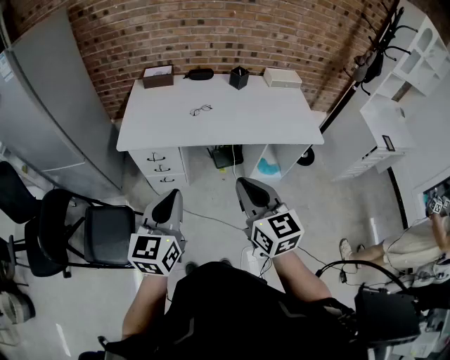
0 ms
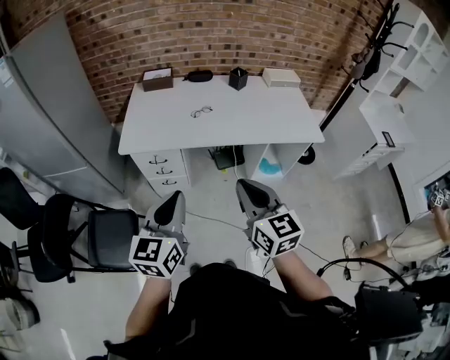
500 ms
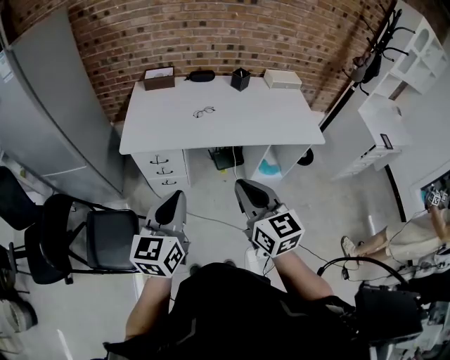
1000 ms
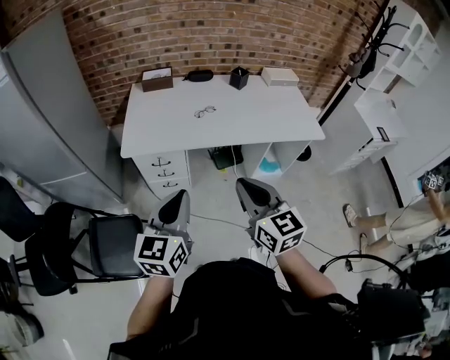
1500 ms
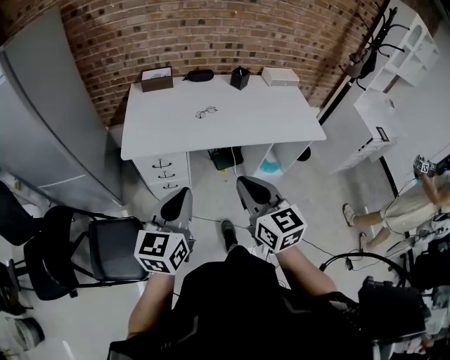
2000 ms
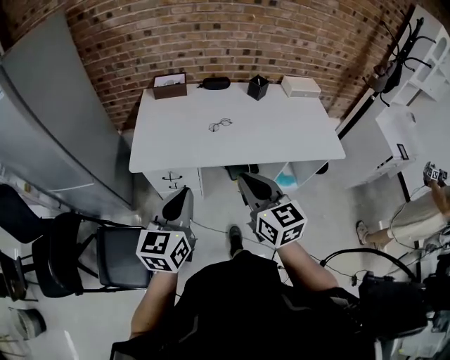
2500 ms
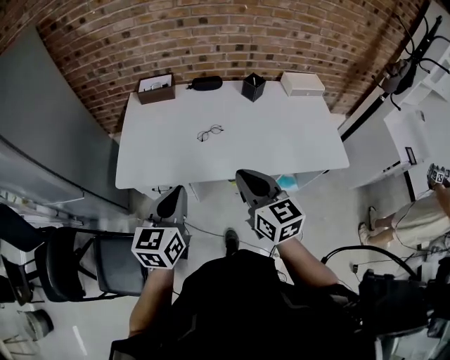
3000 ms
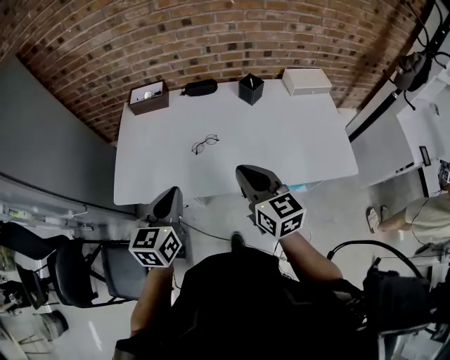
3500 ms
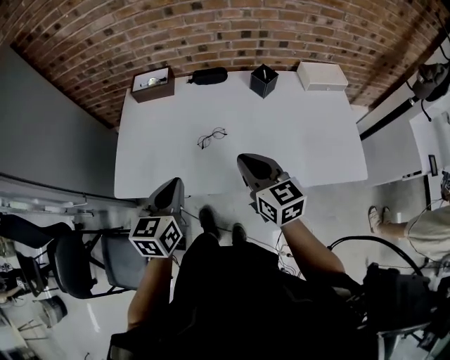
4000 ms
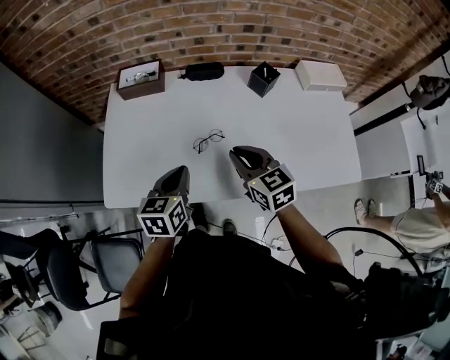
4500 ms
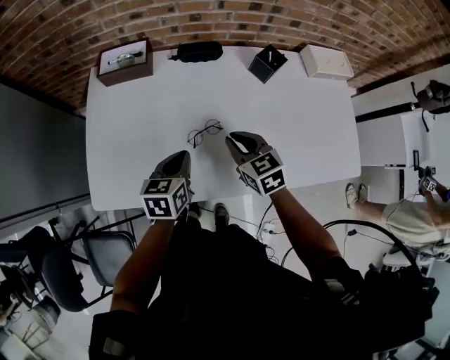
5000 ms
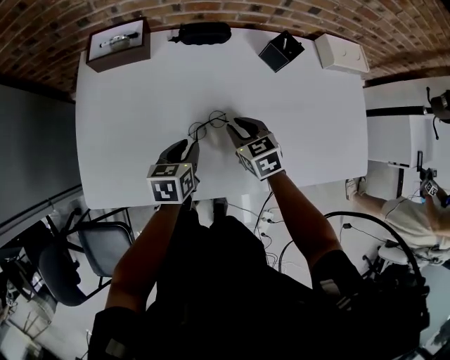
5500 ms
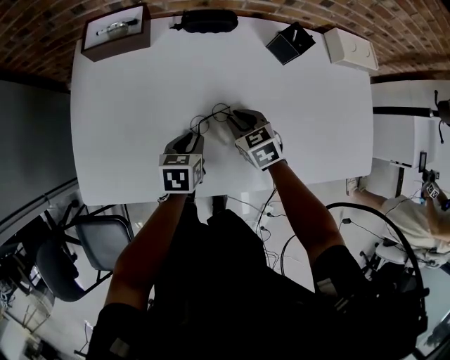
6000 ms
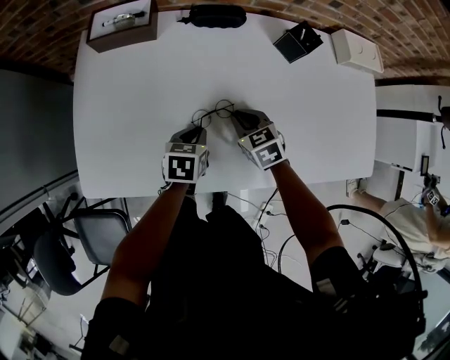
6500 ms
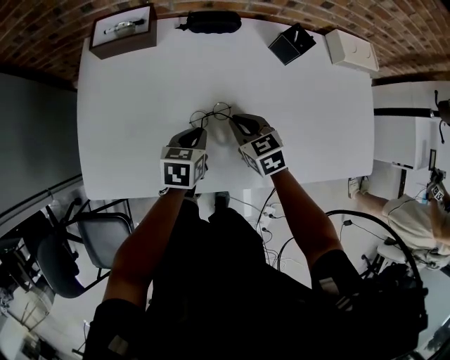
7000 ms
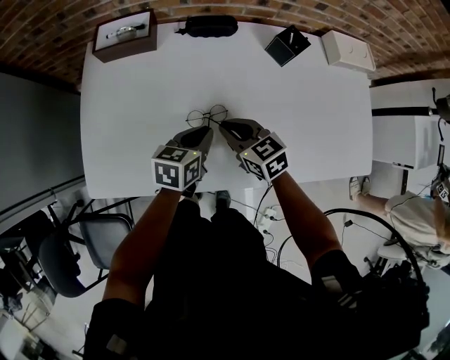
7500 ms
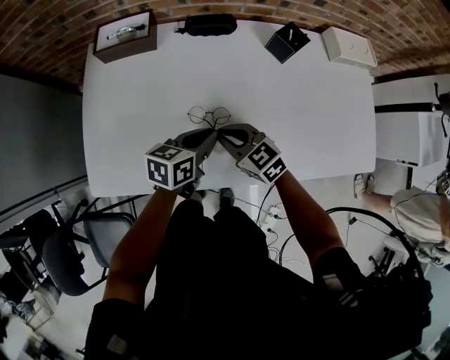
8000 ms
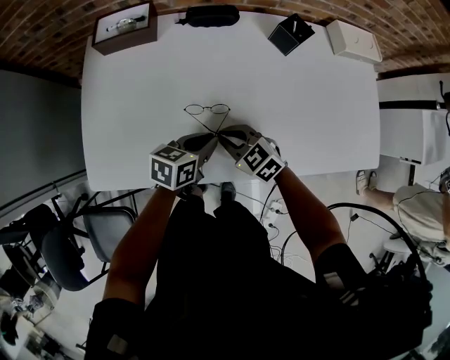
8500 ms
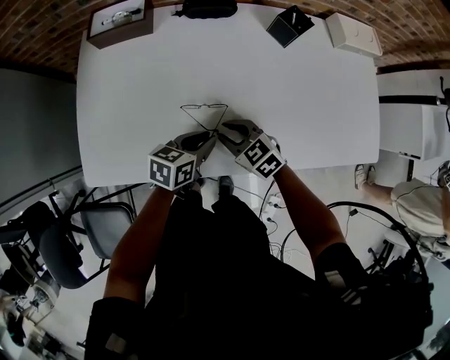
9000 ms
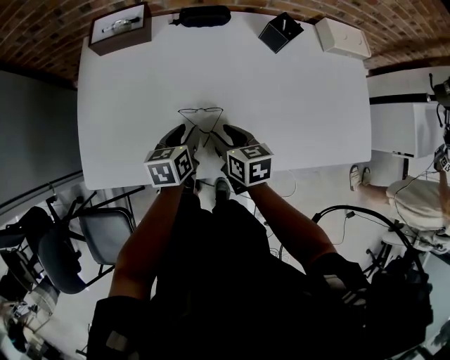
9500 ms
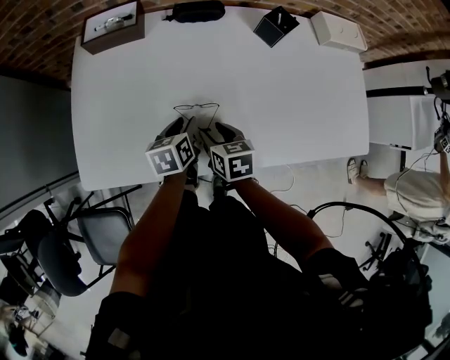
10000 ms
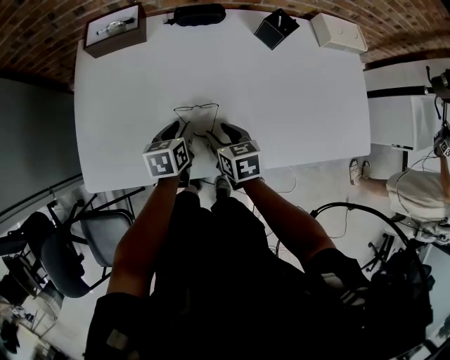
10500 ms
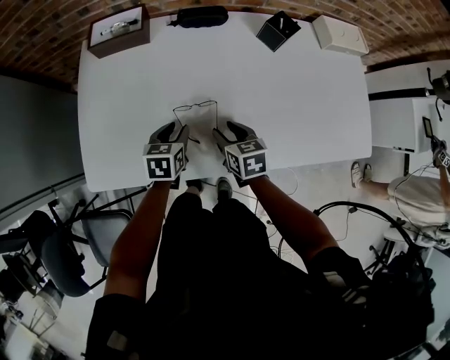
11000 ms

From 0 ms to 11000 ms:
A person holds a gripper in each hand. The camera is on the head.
From 0 ms to 2000 ms: The grippers both shift to the left by about 10 cm.
From 2000 ms to 3500 ms: The right gripper shifts about 35 cm forward and to the right. The left gripper travels forward by about 30 cm.
From 3500 ms to 5500 ms: The grippers both shift downward and forward by approximately 35 cm. The left gripper swivels about 30 degrees, and opens its fingers. The right gripper tilts its fingers some 30 degrees downward.
From 5500 ms to 7500 ms: The left gripper goes downward and returns, about 5 cm each way. Meanwhile the right gripper shifts by roughly 5 cm.
From 7500 ms to 9000 ms: The right gripper heads backward and downward, covering roughly 10 cm; the left gripper moves backward, some 5 cm.
From 9000 ms to 11000 ms: The right gripper turns by approximately 40 degrees. Meanwhile the left gripper travels to the left by some 10 cm, rotates about 30 degrees, and opens.

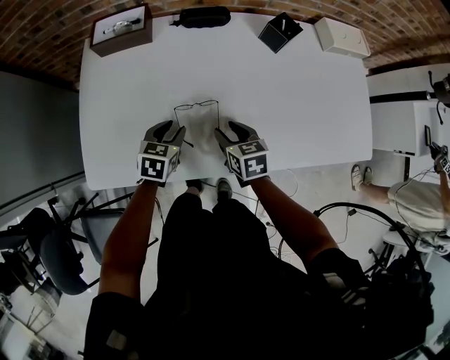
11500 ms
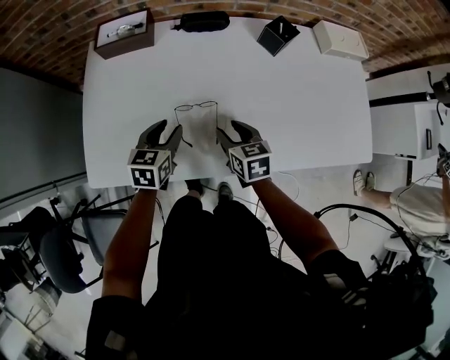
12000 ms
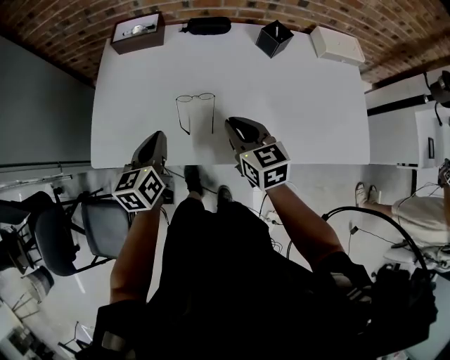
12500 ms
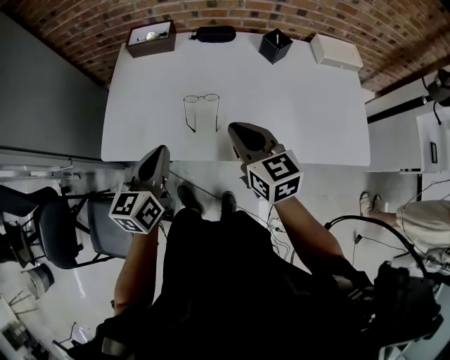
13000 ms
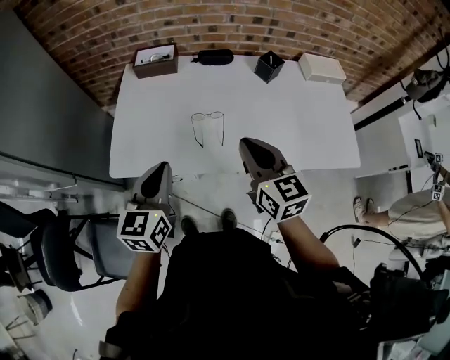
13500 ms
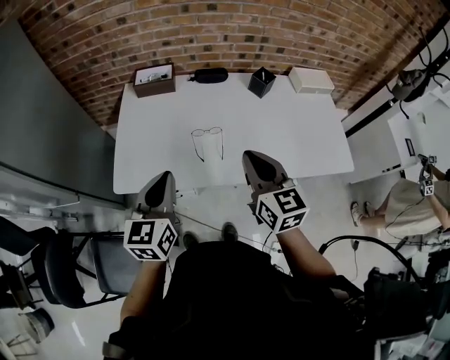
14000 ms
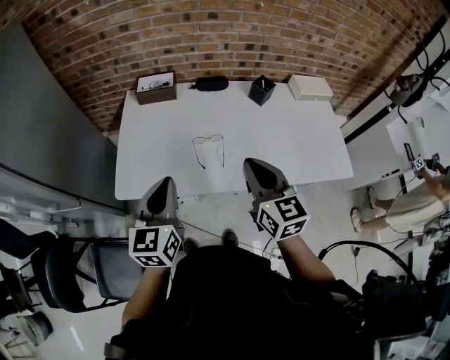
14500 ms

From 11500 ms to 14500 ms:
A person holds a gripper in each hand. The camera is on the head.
From 11500 ms to 13000 ms: The grippers both shift upward and backward by about 25 cm. The left gripper swivels approximately 40 degrees, and closes its fingers. The right gripper turns by some 30 degrees, and closes its fingers.
From 13000 ms to 14500 ms: The left gripper is displaced upward and to the left by roughly 10 cm, while the right gripper shifts approximately 10 cm upward and backward.

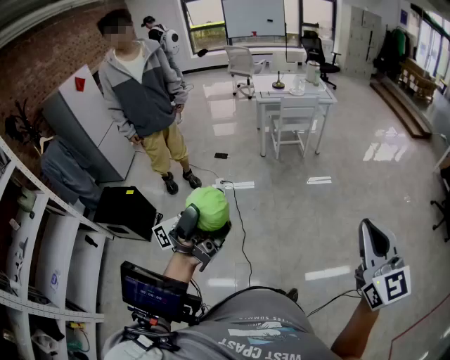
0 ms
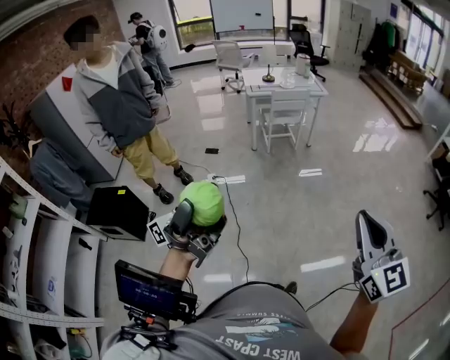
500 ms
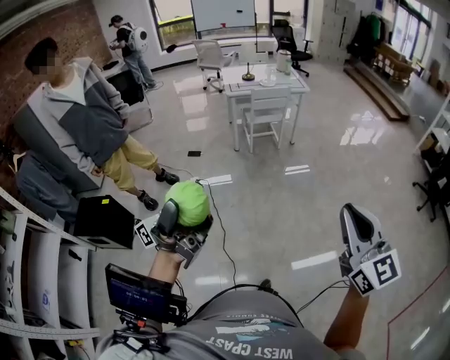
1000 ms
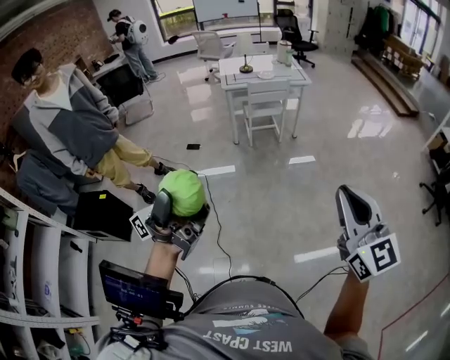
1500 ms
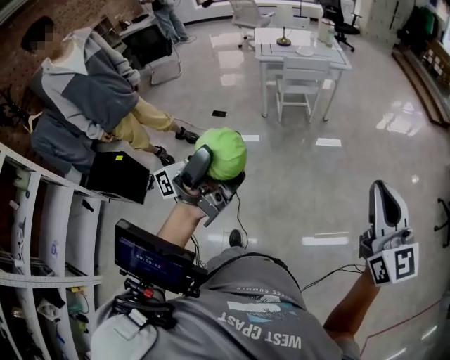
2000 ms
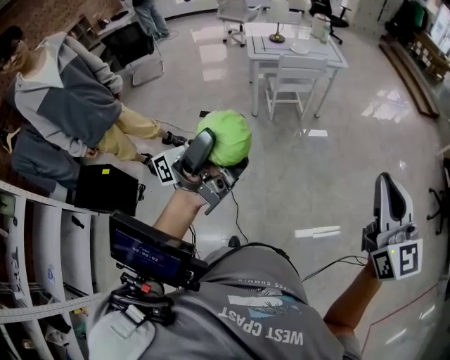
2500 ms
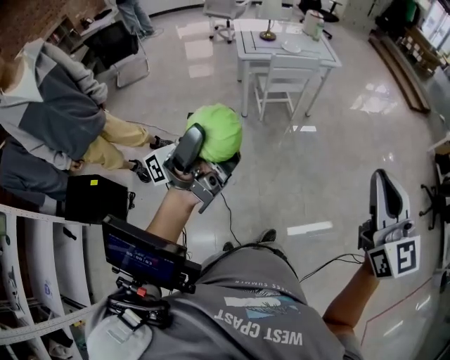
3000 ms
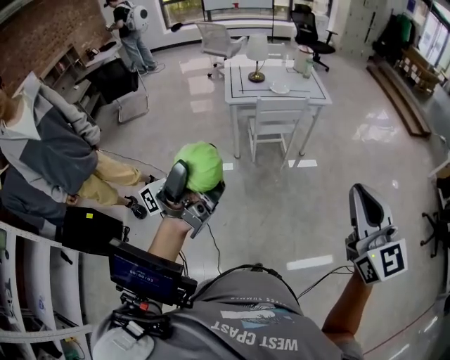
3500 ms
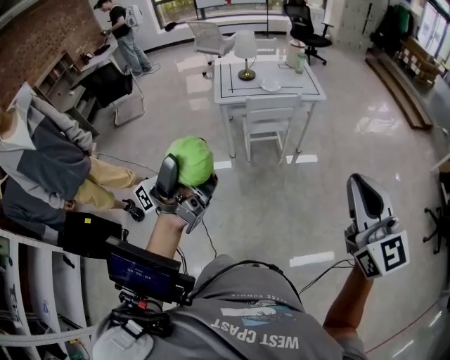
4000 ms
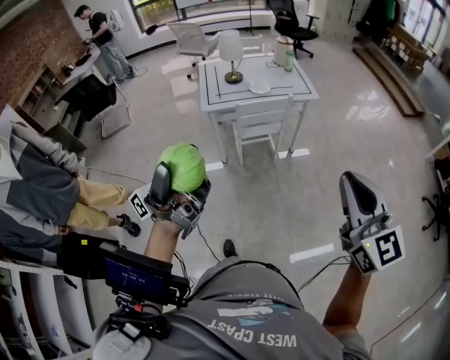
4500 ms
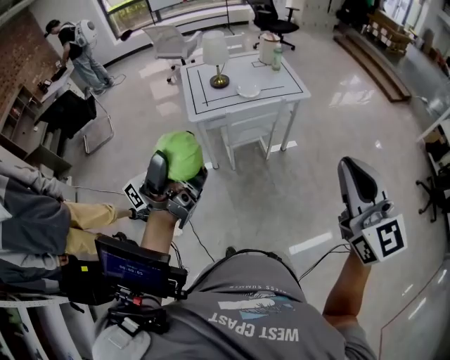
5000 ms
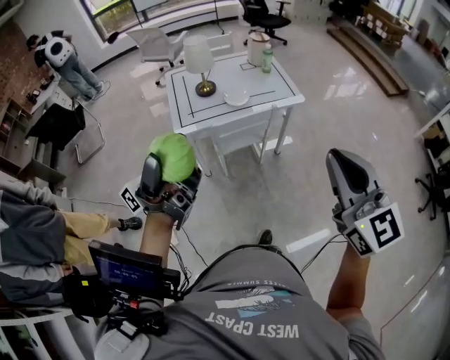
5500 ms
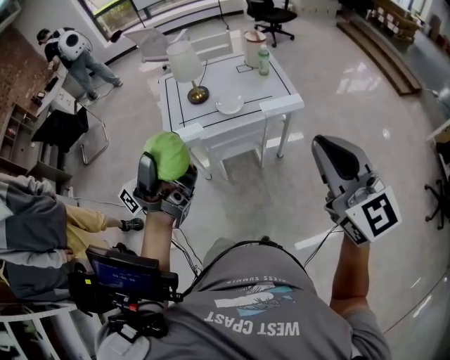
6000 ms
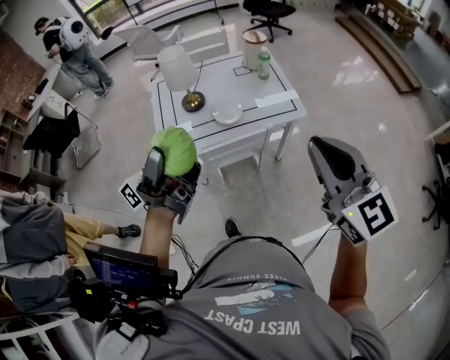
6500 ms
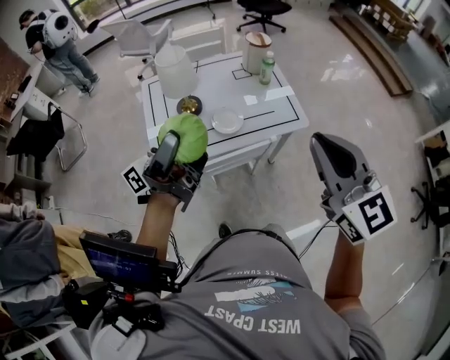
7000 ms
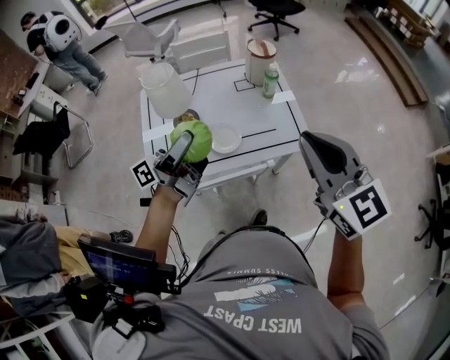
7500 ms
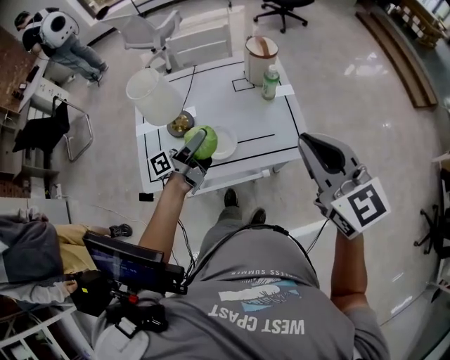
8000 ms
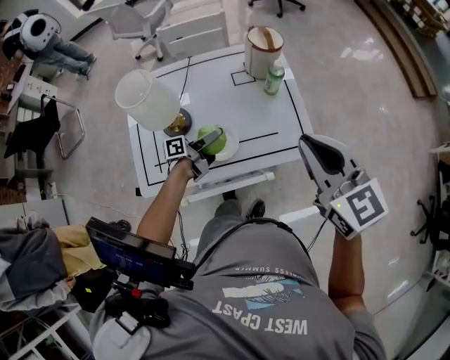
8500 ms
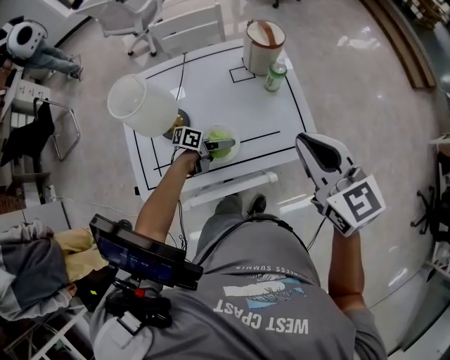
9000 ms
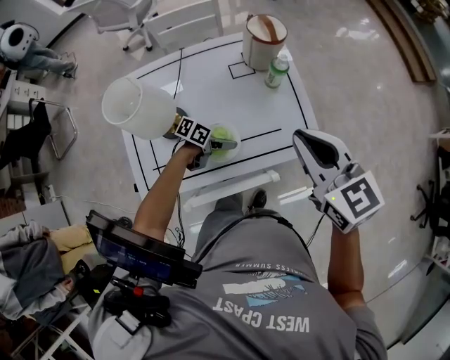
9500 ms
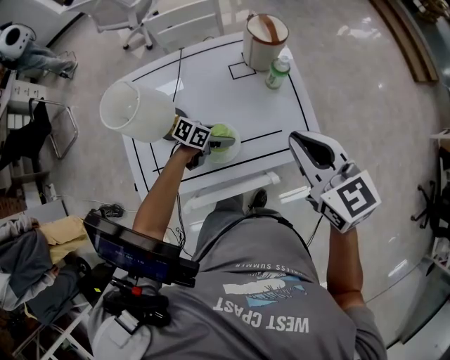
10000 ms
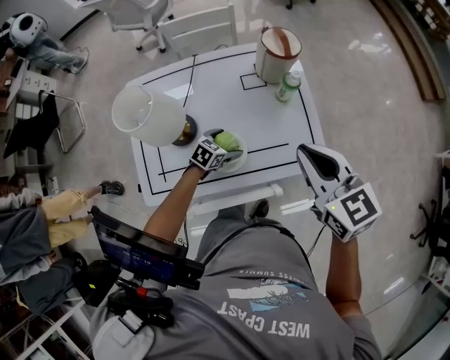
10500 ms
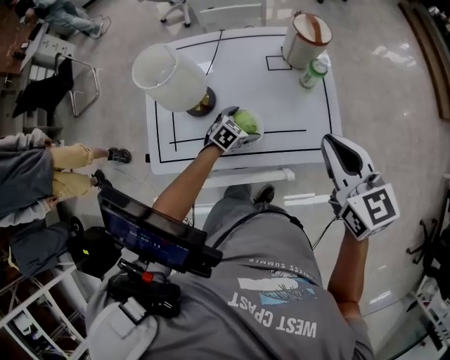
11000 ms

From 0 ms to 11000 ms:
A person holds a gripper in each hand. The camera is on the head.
From 0 ms to 2000 ms: The grippers both shift forward by roughly 25 cm.
From 2000 ms to 3500 ms: Both grippers travel together forward and to the left, some 30 cm.
From 3500 ms to 5500 ms: The two grippers go about 35 cm forward.
From 5500 ms to 7500 ms: Both grippers are carried forward, roughly 50 cm. The left gripper rotates some 20 degrees.
From 7500 ms to 9000 ms: The right gripper goes approximately 20 cm forward and downward; the left gripper moves downward, approximately 40 cm, and points its fingers some 50 degrees further downward.
From 9000 ms to 11000 ms: The left gripper changes place by about 5 cm, and turns by approximately 60 degrees.

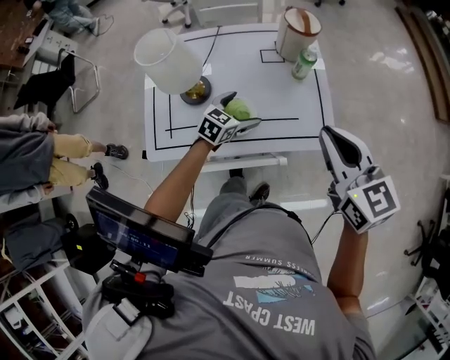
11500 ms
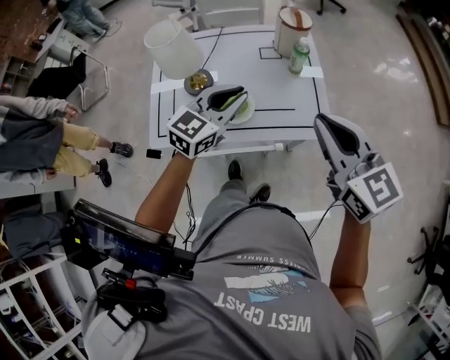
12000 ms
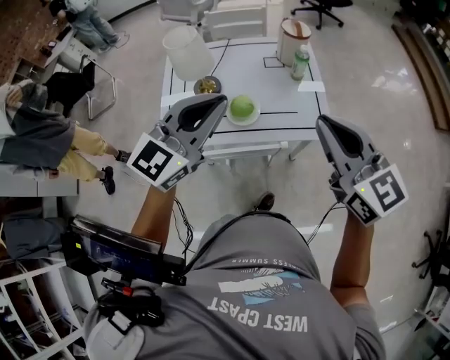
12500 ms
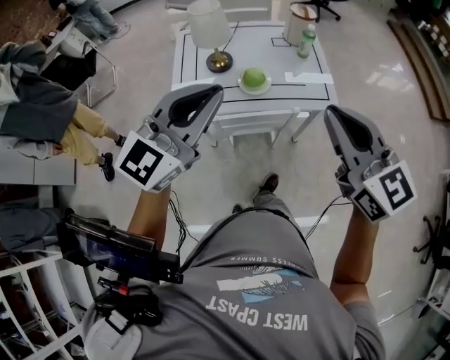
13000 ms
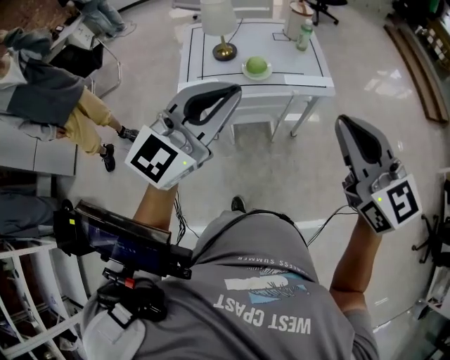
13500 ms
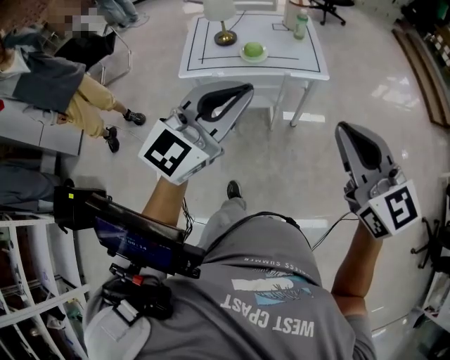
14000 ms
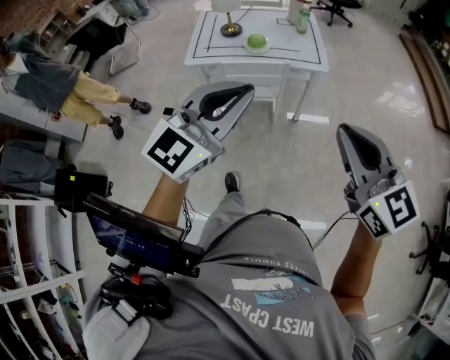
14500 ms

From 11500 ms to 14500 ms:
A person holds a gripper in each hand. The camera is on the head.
From 11500 ms to 13000 ms: The left gripper goes roughly 50 cm upward and backward, angles its fingers upward, by about 40 degrees, and closes its fingers. The right gripper travels backward and upward by about 30 cm.
From 13000 ms to 14500 ms: The grippers both shift backward and to the right by about 35 cm.
